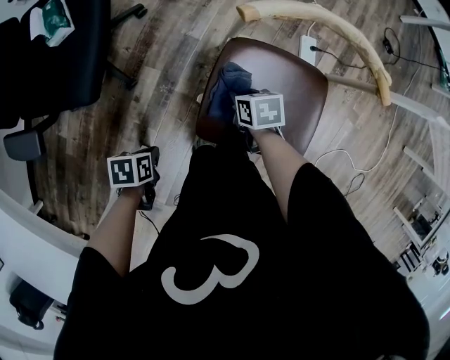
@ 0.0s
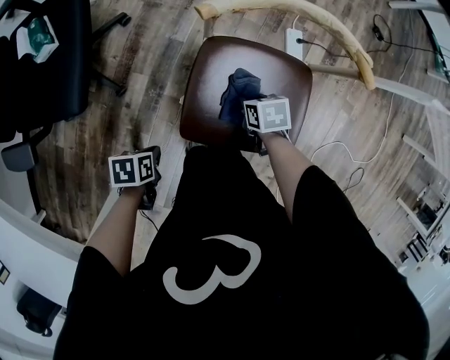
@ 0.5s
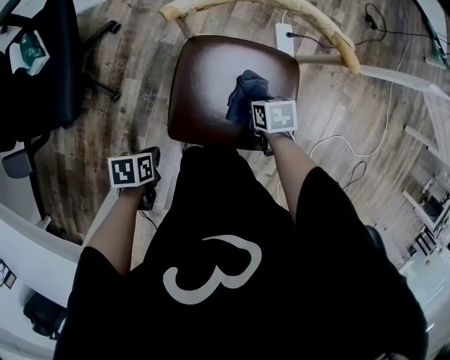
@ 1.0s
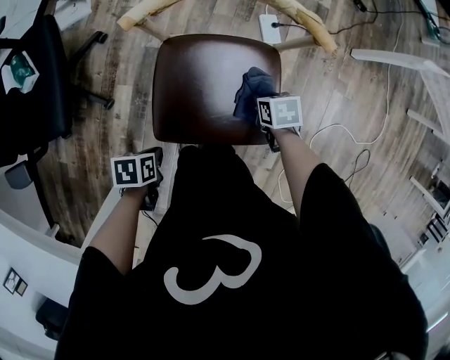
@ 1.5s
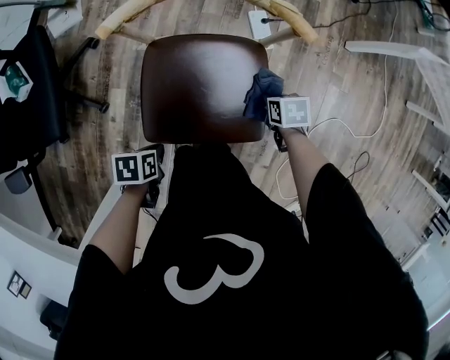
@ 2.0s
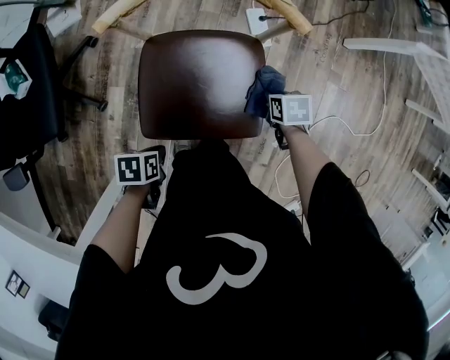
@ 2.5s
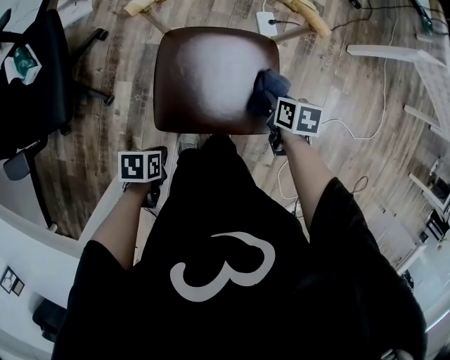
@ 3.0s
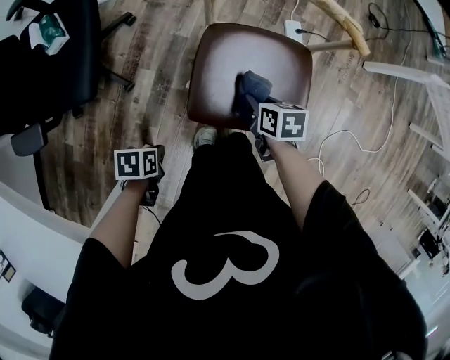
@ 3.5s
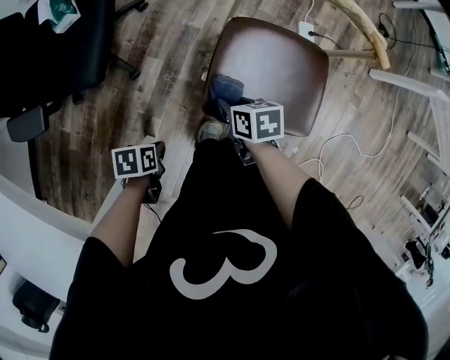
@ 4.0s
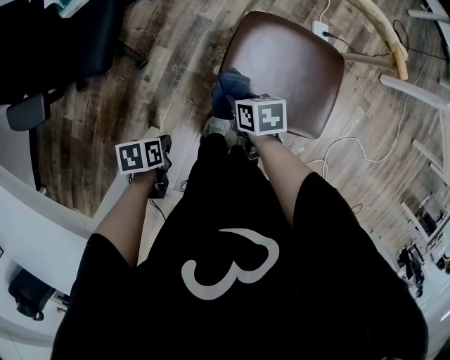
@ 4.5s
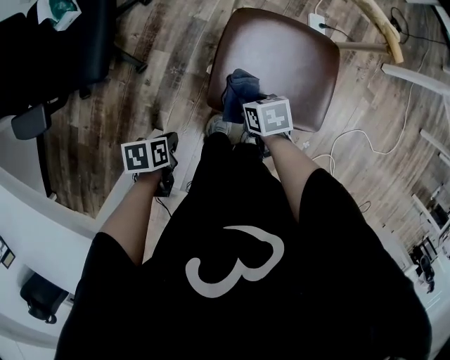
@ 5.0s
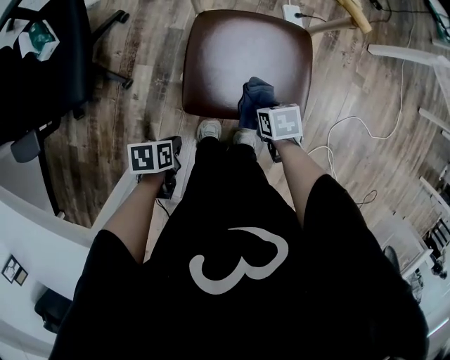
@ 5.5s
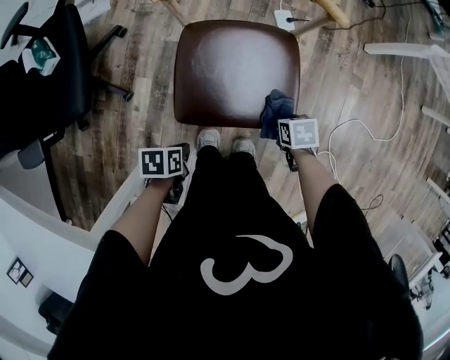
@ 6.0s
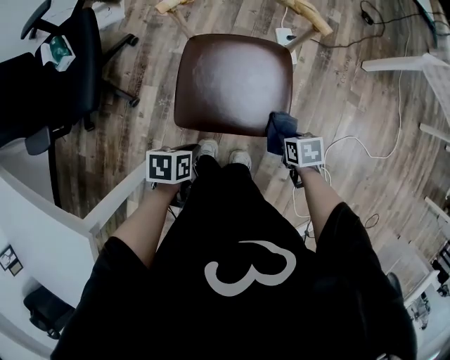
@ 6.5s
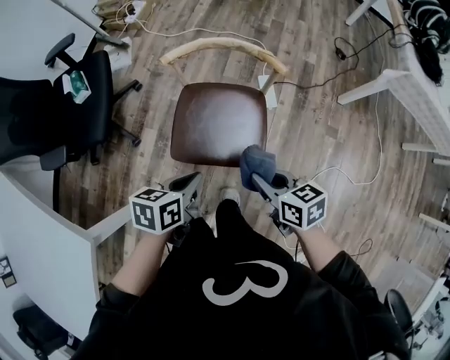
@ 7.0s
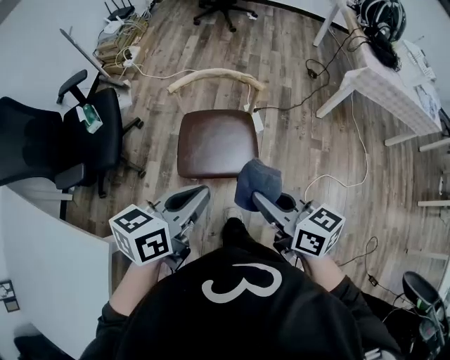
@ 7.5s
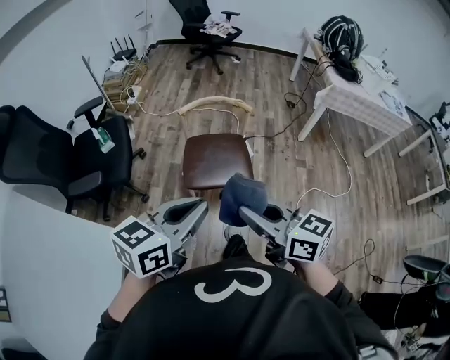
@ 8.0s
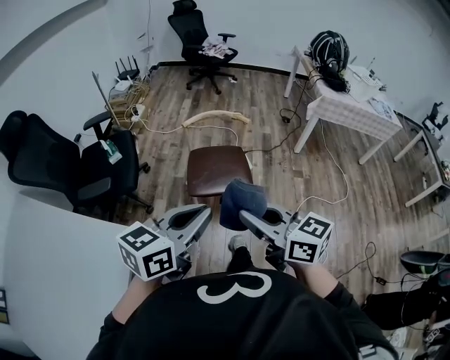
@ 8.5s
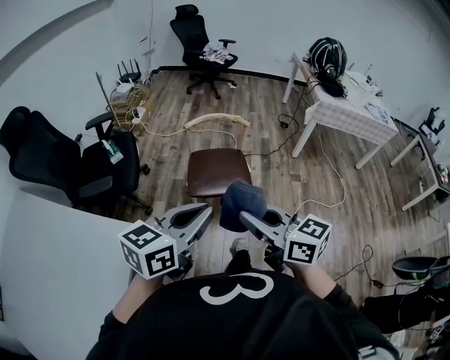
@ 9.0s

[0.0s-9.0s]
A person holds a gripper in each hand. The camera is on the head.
0.0s to 2.0s: The right gripper ends up about 30 cm from where it was.
2.0s to 4.5s: The right gripper ends up about 35 cm from where it was.
4.5s to 7.0s: The right gripper moves approximately 35 cm, and swivels some 30 degrees.
7.0s to 9.0s: The right gripper changes place by roughly 50 cm, and changes its angle by approximately 40 degrees.

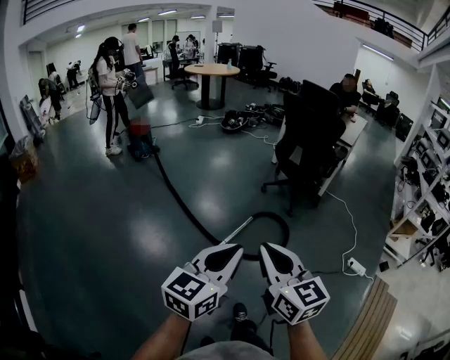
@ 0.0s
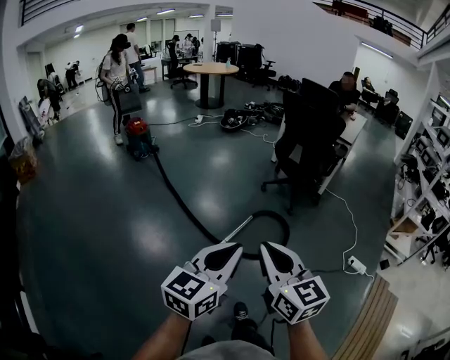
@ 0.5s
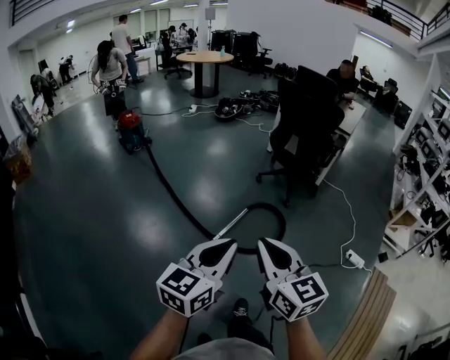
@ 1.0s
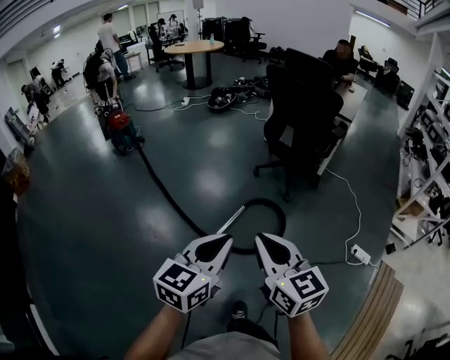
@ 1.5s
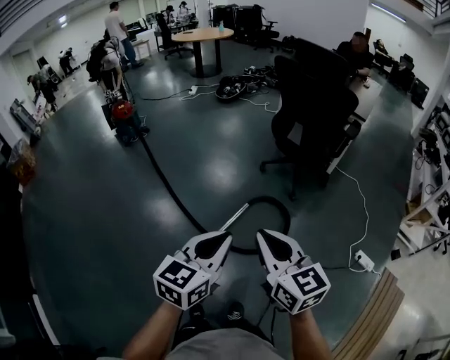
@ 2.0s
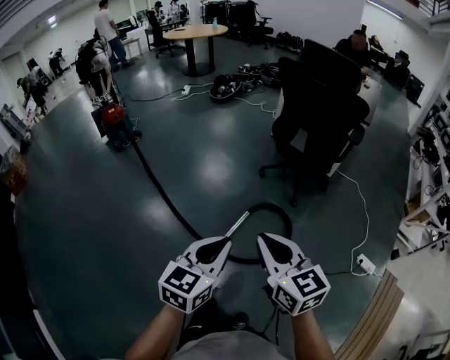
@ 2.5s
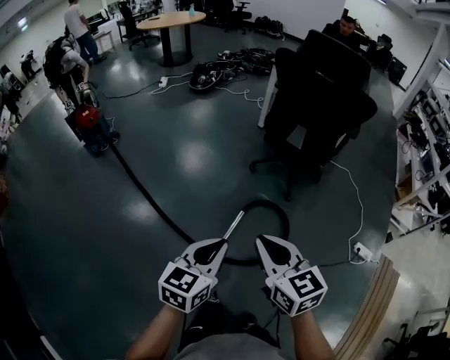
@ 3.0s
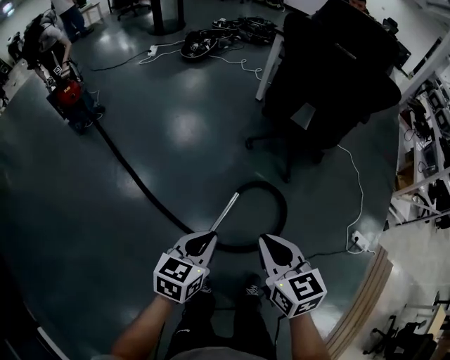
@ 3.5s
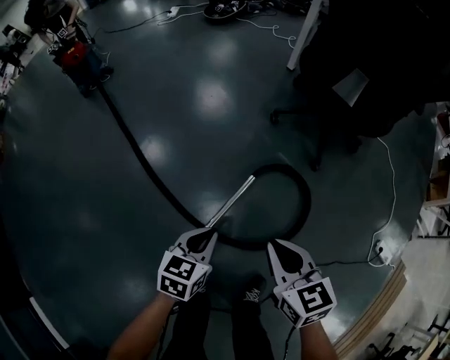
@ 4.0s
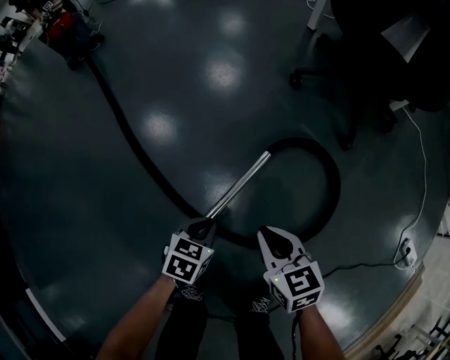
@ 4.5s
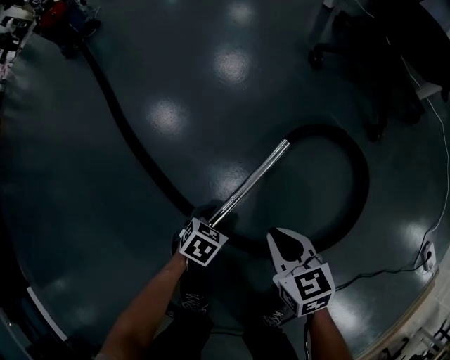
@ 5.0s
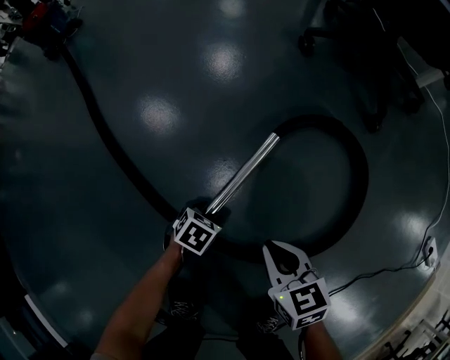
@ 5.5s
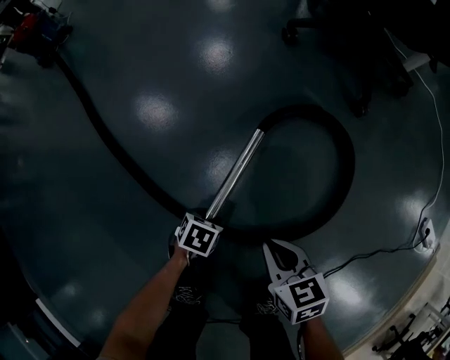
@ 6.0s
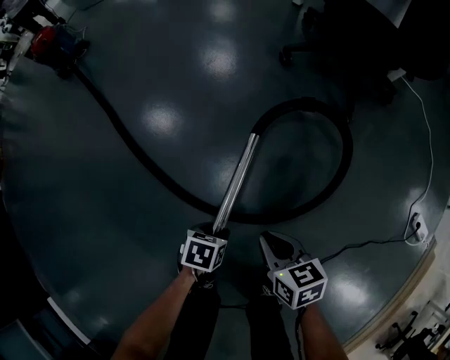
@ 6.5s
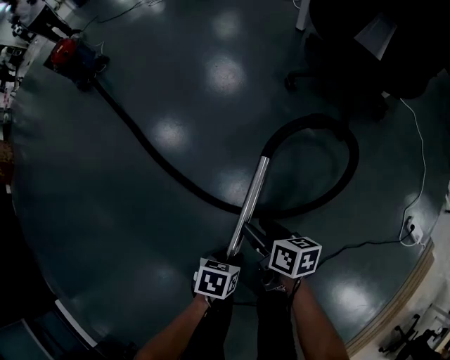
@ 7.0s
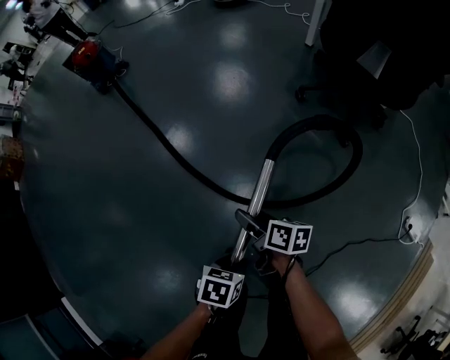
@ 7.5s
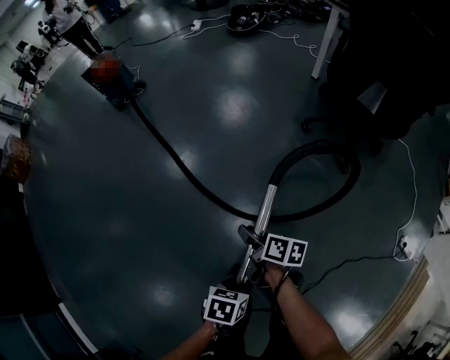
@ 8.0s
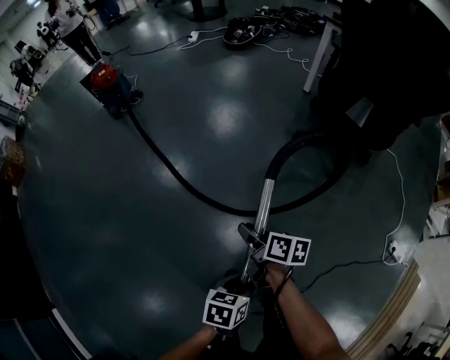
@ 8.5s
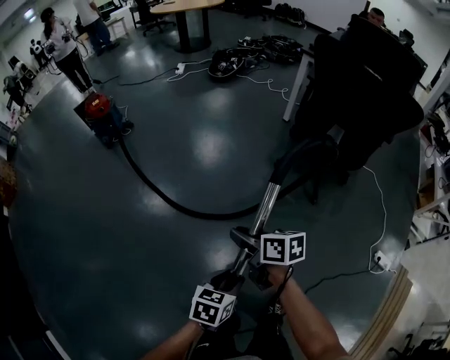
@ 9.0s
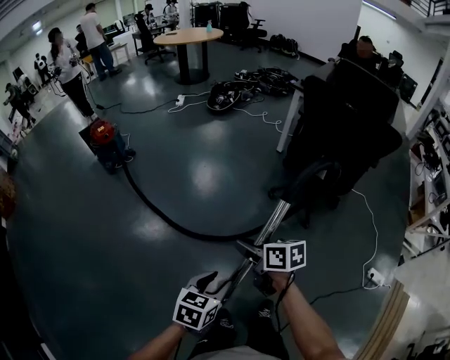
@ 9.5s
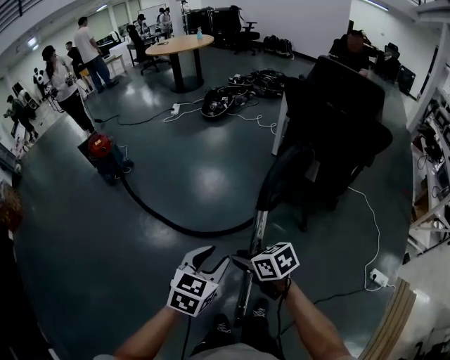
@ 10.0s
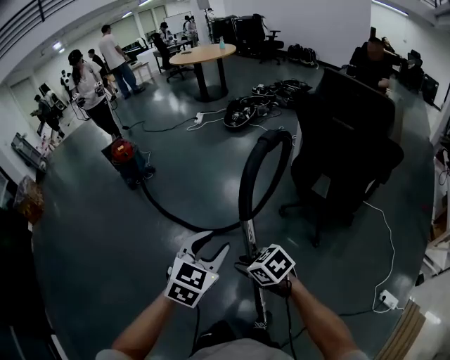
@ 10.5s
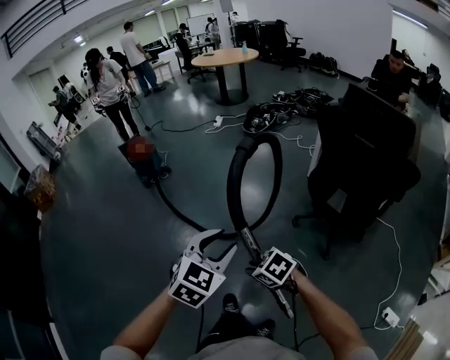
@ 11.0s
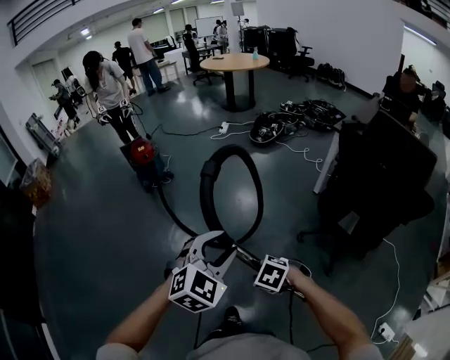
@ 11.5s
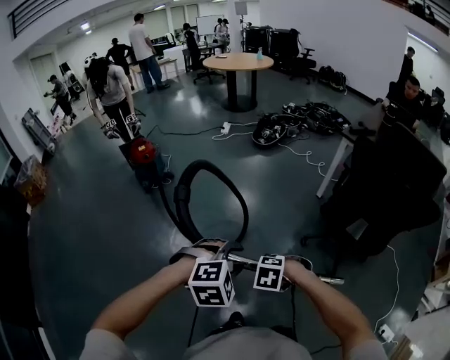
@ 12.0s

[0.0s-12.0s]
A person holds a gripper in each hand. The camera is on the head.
0.0s to 2.0s: The two grippers go roughly 30 cm forward and to the right.
2.0s to 4.0s: The grippers both shift downward and forward by approximately 50 cm. The right gripper turns by roughly 20 degrees. Meanwhile the left gripper rotates roughly 30 degrees.
4.0s to 6.0s: Both grippers travel together downward, about 50 cm. The left gripper tilts its fingers some 30 degrees downward, and opens up.
6.0s to 8.0s: The left gripper goes some 50 cm upward; the right gripper travels upward and to the left by some 40 cm, changes its angle by approximately 40 degrees, and opens up.
8.0s to 10.0s: The right gripper travels upward by approximately 25 cm, and rolls counterclockwise, seen from behind, by roughly 40 degrees. The left gripper shifts some 40 cm upward and forward, and turns by approximately 50 degrees.
10.0s to 12.0s: The right gripper changes place by approximately 15 cm, and rotates around the line of its fingers by about 60 degrees, counterclockwise from behind. Meanwhile the left gripper goes upward and returns, roughly 10 cm each way, and rotates around the line of its fingers by roughly 50 degrees, clockwise from behind.

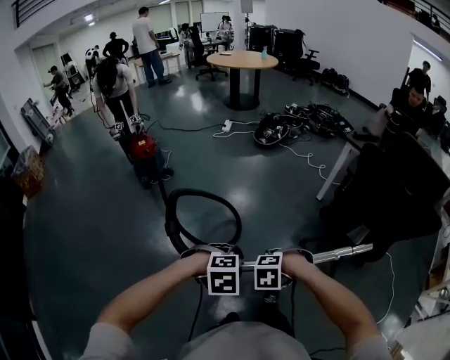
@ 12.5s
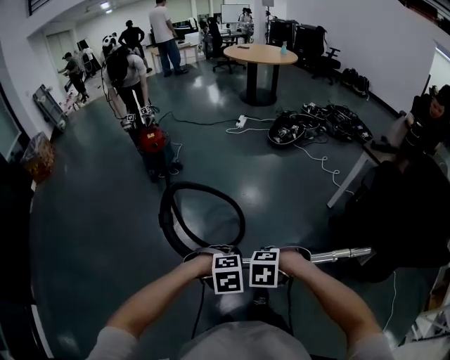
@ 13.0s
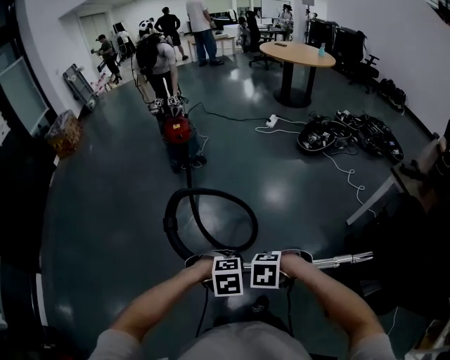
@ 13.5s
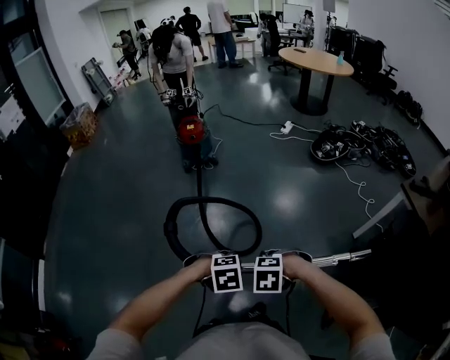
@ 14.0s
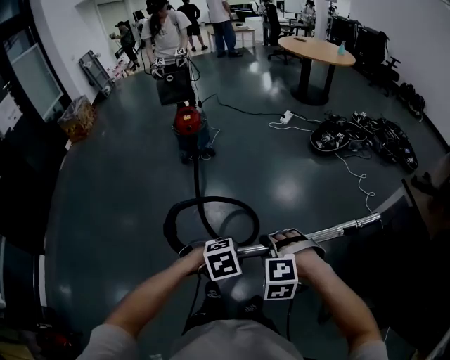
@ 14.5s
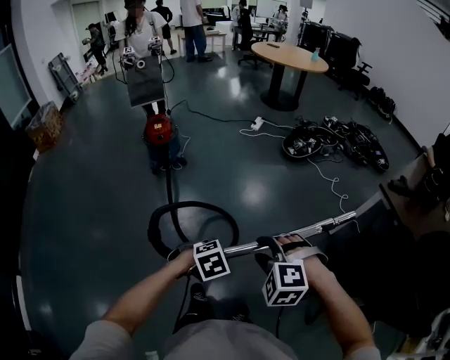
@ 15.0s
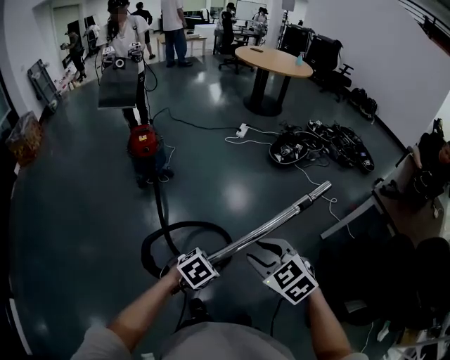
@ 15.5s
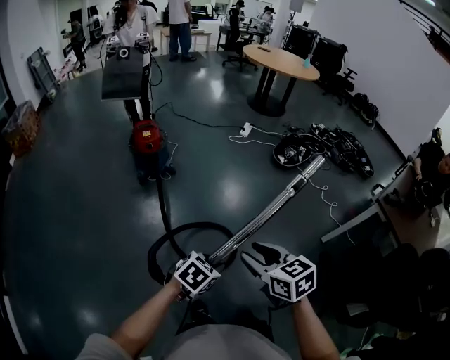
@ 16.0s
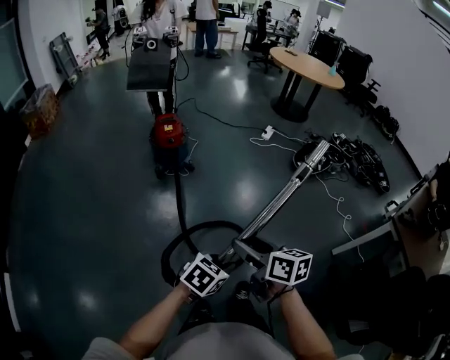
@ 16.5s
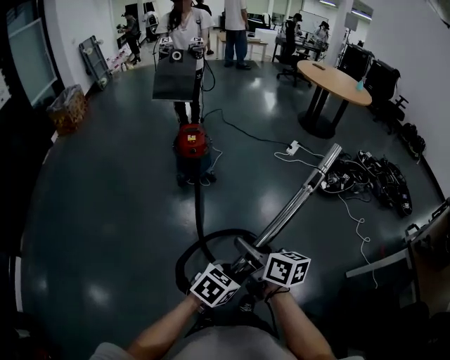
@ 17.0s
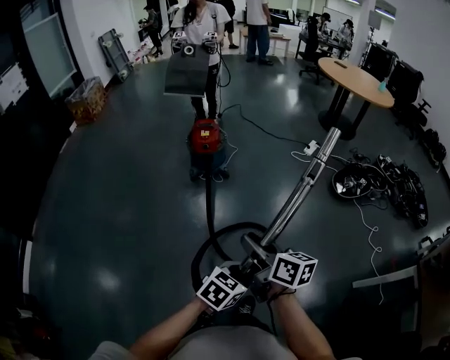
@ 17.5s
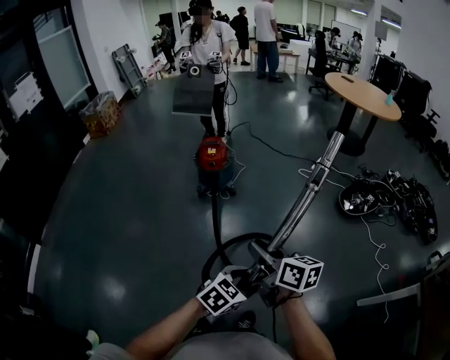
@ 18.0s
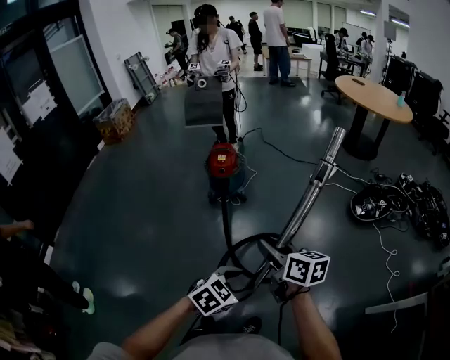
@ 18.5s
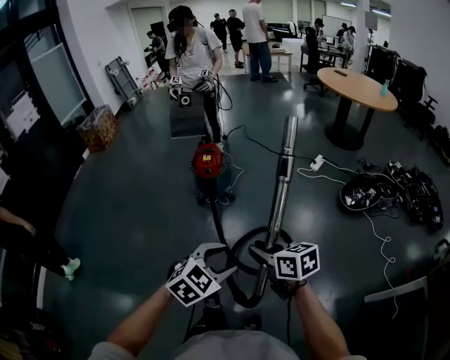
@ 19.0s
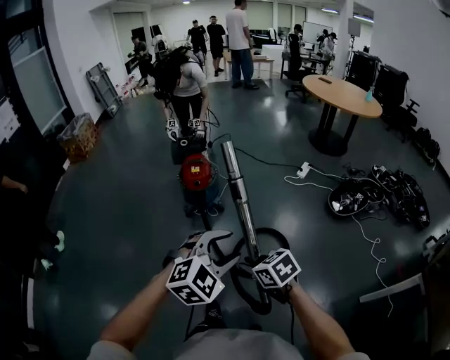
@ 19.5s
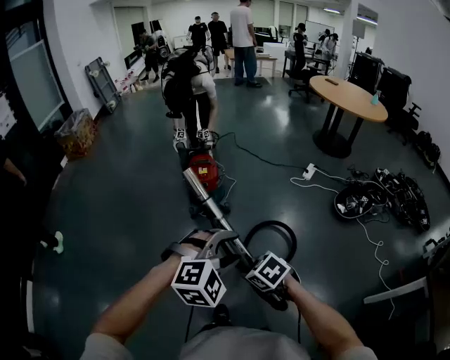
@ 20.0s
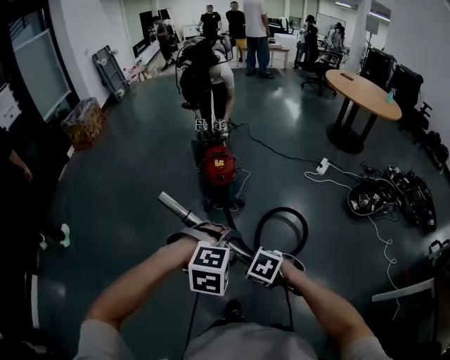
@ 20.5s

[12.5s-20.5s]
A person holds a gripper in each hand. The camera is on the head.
12.5s to 14.5s: The right gripper changes place by about 25 cm, and changes its angle by some 40 degrees, while the left gripper changes place by roughly 20 cm, and changes its angle by some 40 degrees.
14.5s to 16.5s: The grippers both shift to the left and forward by some 30 cm. The left gripper rotates some 40 degrees, while the right gripper rolls clockwise, seen from behind, by roughly 100 degrees, and opens.
16.5s to 18.5s: The left gripper shifts roughly 15 cm to the right and forward, and opens up. Meanwhile the right gripper travels forward and to the right by some 20 cm, and closes up.
18.5s to 20.5s: The left gripper shifts by approximately 30 cm, and rotates around the line of its fingers by about 50 degrees, clockwise from behind, while the right gripper moves some 30 cm, and tips its fingers downward by about 60 degrees.
